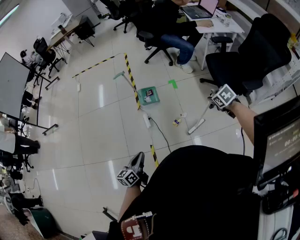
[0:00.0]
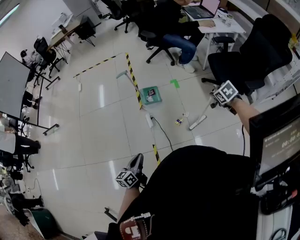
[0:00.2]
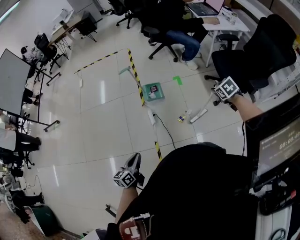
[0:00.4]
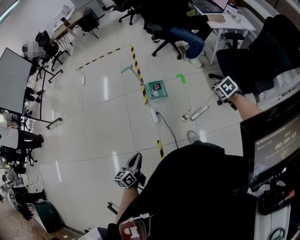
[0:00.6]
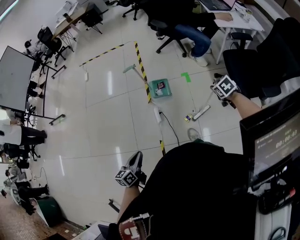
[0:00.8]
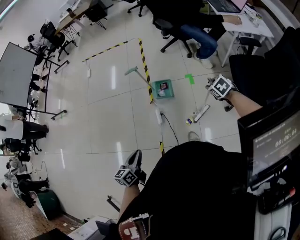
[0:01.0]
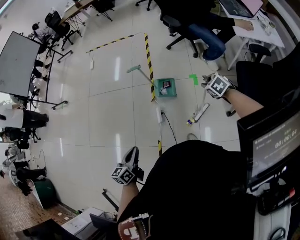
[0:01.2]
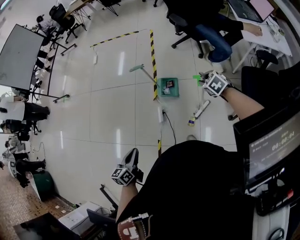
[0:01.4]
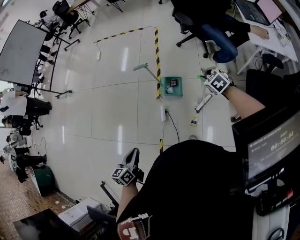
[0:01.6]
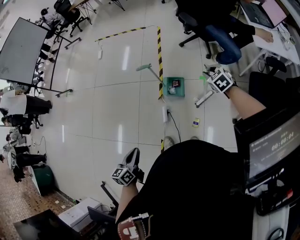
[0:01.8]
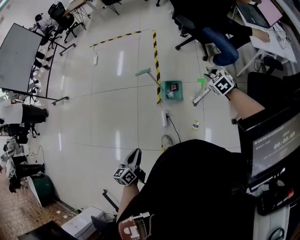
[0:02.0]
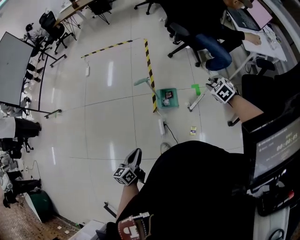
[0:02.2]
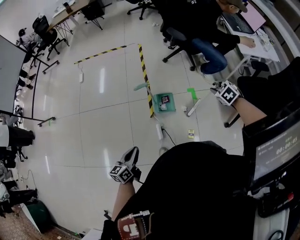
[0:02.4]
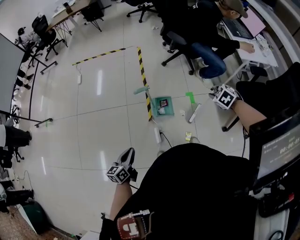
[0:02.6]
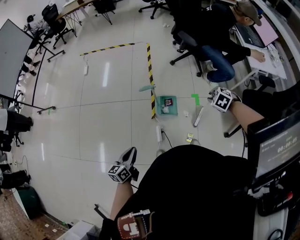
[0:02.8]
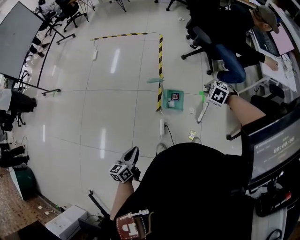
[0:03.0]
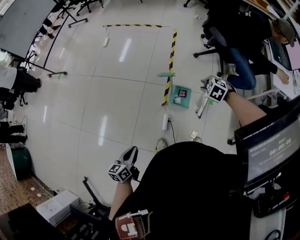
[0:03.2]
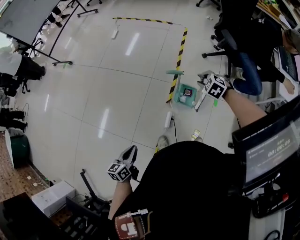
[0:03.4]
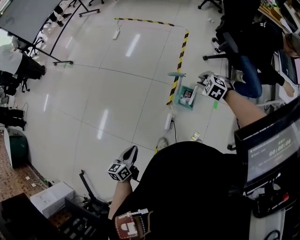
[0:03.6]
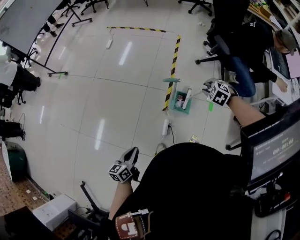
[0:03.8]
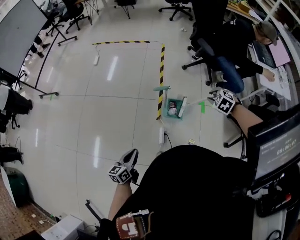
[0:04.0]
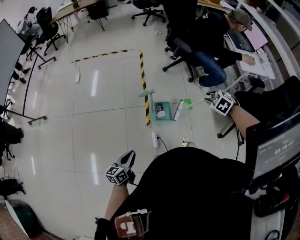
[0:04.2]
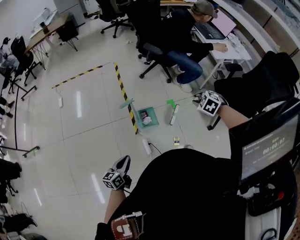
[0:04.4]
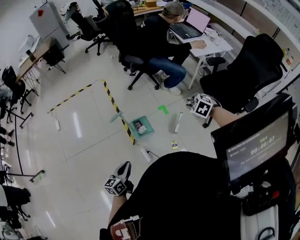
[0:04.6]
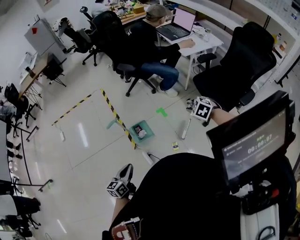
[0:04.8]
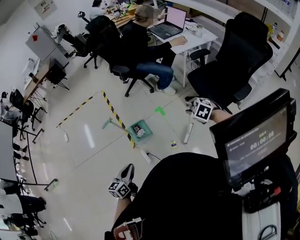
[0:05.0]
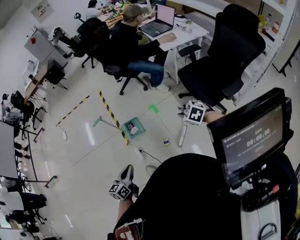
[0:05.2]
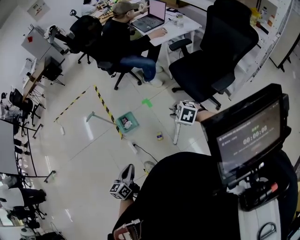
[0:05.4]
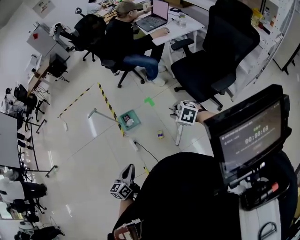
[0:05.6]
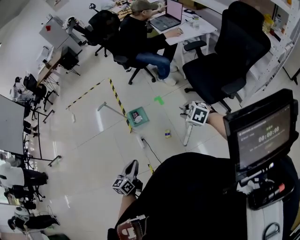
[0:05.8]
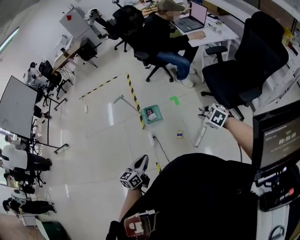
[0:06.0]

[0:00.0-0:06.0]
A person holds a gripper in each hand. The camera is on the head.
0:00.0 to 0:01.6: The left gripper shifts by some 20 cm, and rotates approximately 20 degrees. Meanwhile the right gripper moves approximately 40 cm, and changes its angle by some 30 degrees.
0:01.6 to 0:03.0: The left gripper shifts by approximately 20 cm. The right gripper ends up roughly 15 cm from where it was, and swivels roughly 30 degrees.
0:03.0 to 0:04.4: The left gripper shifts by roughly 5 cm, and changes its angle by about 20 degrees. Meanwhile the right gripper changes place by approximately 15 cm, and rotates roughly 20 degrees.
0:04.4 to 0:06.0: Both grippers are carried to the right and backward, roughly 40 cm.

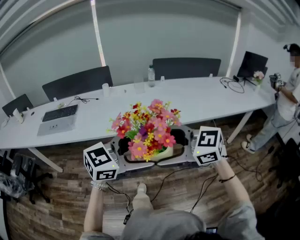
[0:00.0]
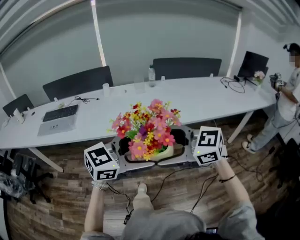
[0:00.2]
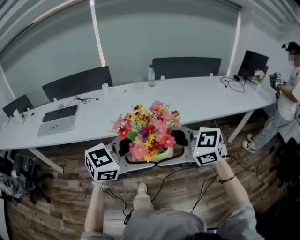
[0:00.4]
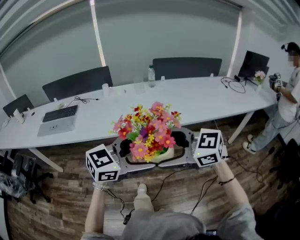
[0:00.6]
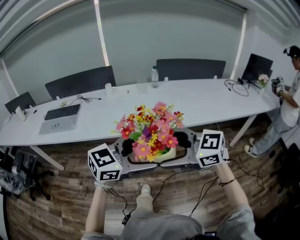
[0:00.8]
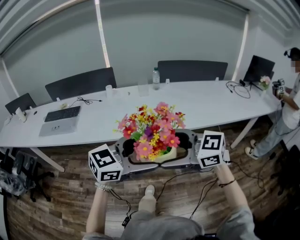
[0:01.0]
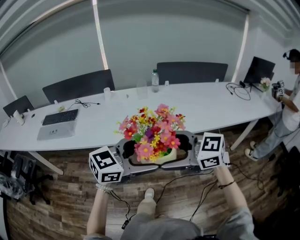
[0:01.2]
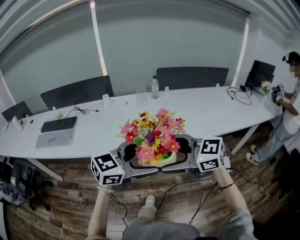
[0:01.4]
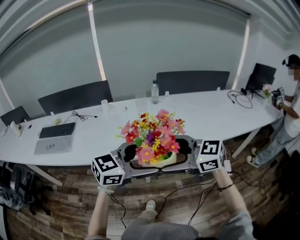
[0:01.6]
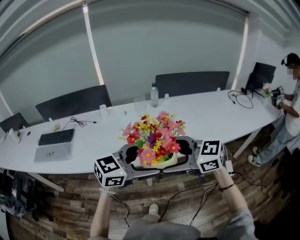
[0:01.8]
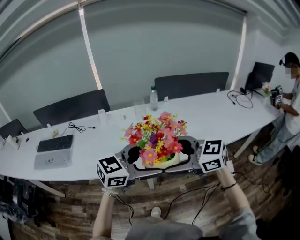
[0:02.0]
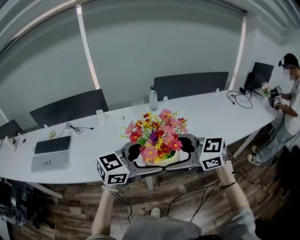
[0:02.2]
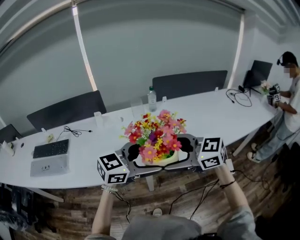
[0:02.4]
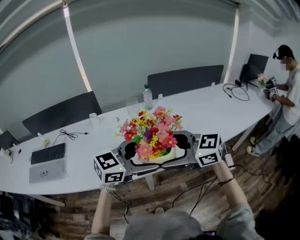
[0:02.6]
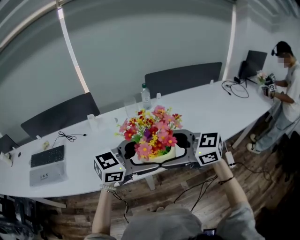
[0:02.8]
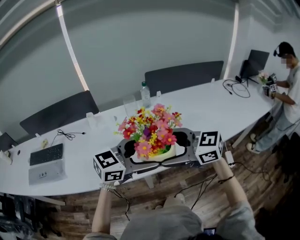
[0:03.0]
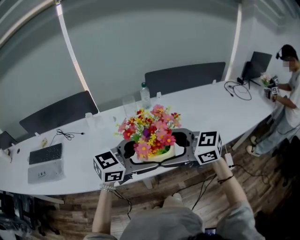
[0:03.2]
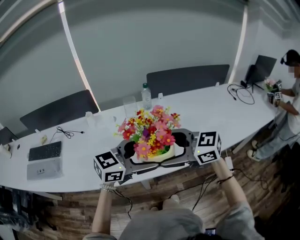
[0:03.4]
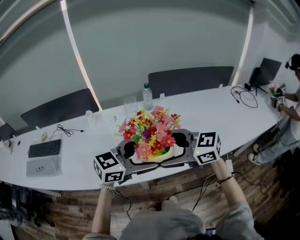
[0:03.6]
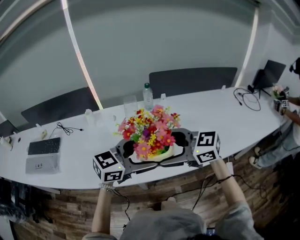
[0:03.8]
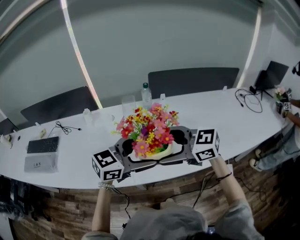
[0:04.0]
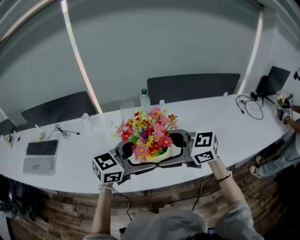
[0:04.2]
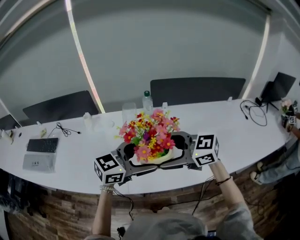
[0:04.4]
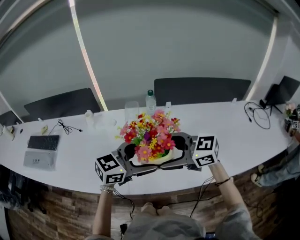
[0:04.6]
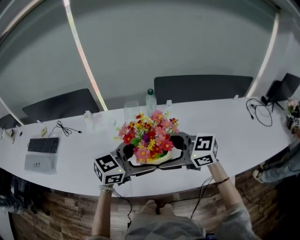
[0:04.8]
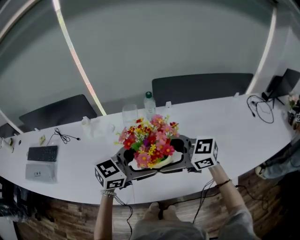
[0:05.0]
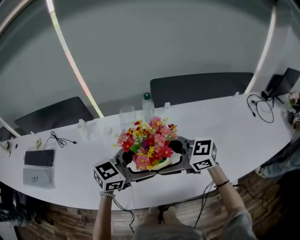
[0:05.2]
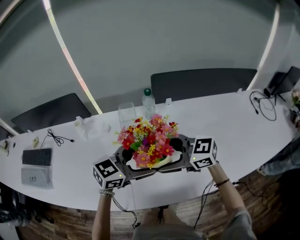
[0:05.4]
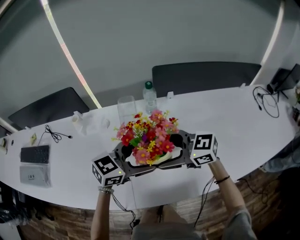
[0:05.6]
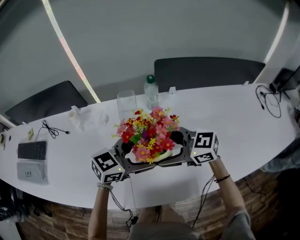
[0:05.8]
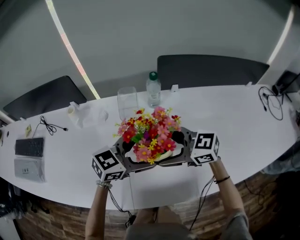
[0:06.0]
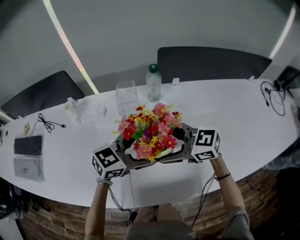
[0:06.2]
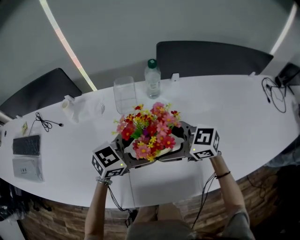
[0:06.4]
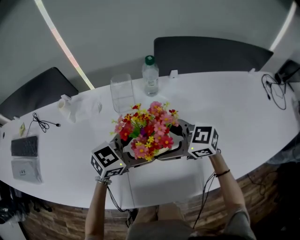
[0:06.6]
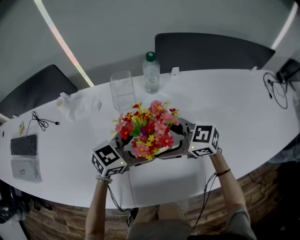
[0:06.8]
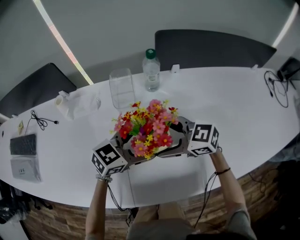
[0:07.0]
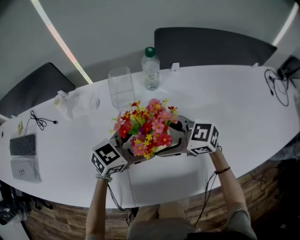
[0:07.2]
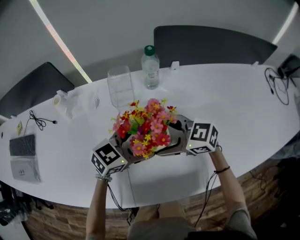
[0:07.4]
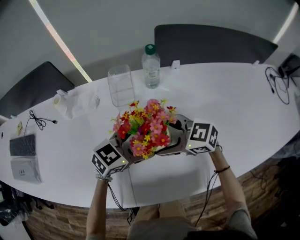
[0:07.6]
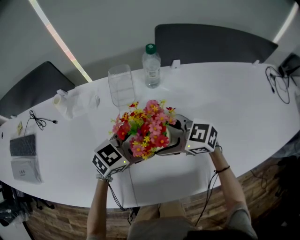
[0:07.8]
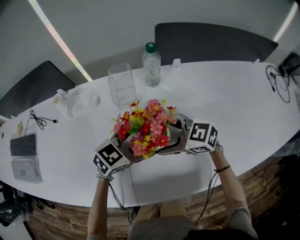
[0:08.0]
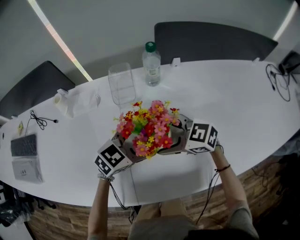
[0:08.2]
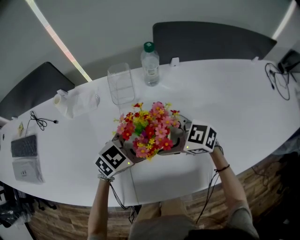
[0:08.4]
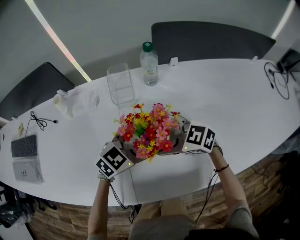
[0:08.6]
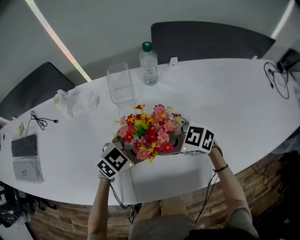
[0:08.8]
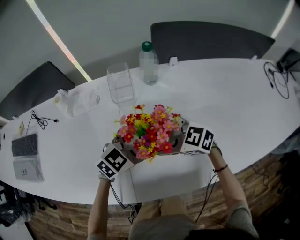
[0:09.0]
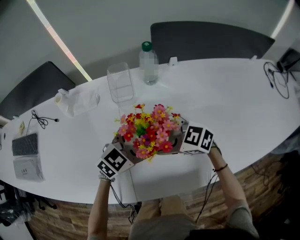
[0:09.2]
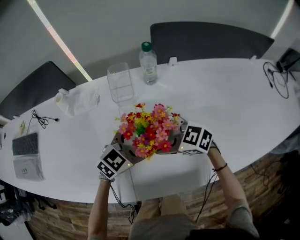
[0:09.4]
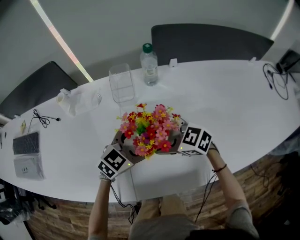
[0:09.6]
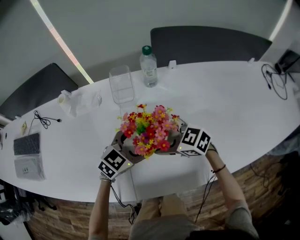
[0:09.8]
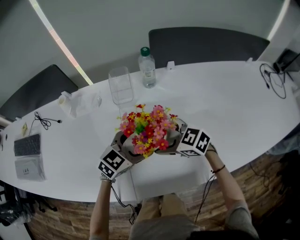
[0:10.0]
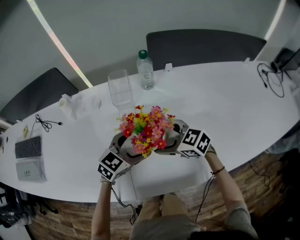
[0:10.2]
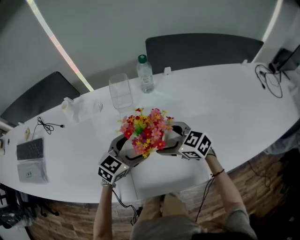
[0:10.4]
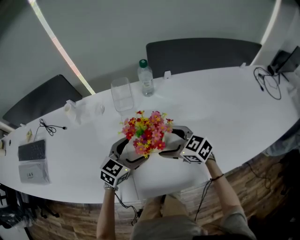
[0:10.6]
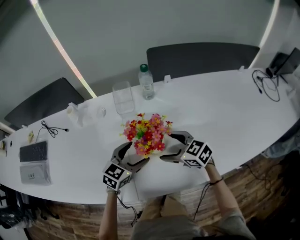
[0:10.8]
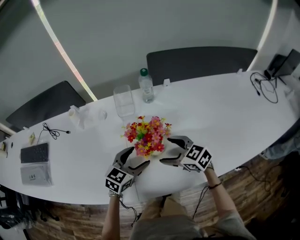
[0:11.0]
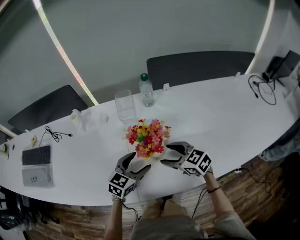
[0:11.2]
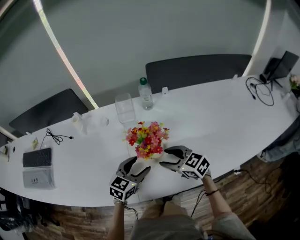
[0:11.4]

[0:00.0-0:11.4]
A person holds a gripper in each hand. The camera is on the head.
0:00.0 to 0:01.4: The left gripper moves roughly 10 cm, while the right gripper moves about 10 cm.
0:01.4 to 0:02.8: The right gripper moves roughly 20 cm, while the left gripper shifts by approximately 20 cm.
0:02.8 to 0:04.2: The right gripper ends up some 15 cm from where it was; the left gripper shifts by roughly 15 cm.
0:04.2 to 0:05.6: The left gripper shifts by some 15 cm; the right gripper shifts by some 15 cm.
0:05.6 to 0:07.2: Both grippers travel together downward, about 10 cm.
0:07.2 to 0:10.0: The grippers make only small movements.
0:10.0 to 0:11.4: The right gripper moves about 5 cm, and closes its fingers; the left gripper ends up roughly 5 cm from where it was.

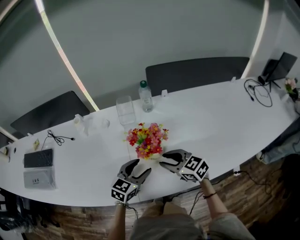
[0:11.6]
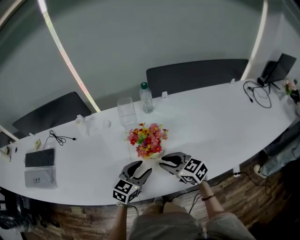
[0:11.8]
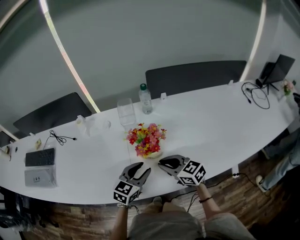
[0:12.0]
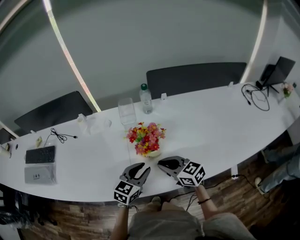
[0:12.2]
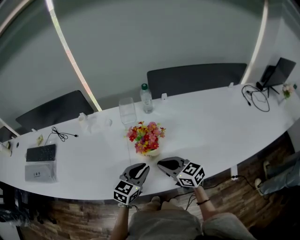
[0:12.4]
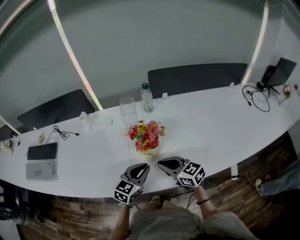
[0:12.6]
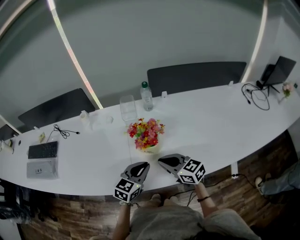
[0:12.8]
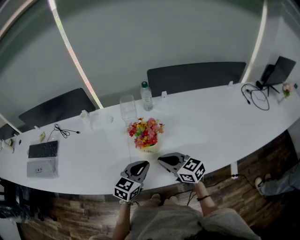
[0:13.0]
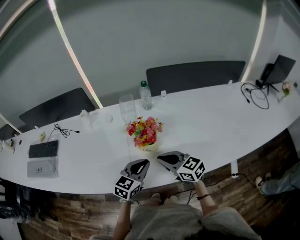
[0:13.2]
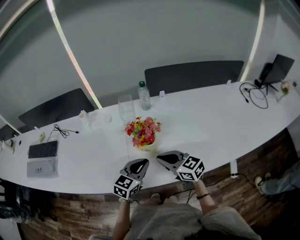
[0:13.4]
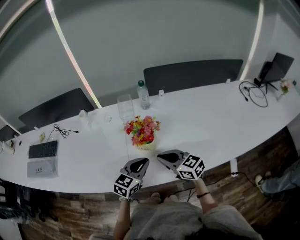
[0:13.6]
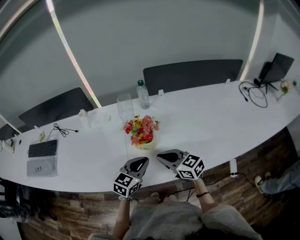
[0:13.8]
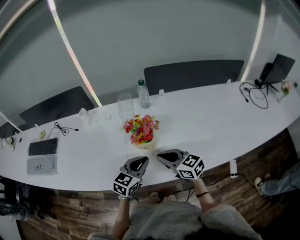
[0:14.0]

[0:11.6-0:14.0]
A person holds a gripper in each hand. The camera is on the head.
0:11.6 to 0:12.8: The left gripper moves backward, roughly 5 cm, and closes. The right gripper ends up some 5 cm from where it was.
0:12.8 to 0:14.0: There are only small adjustments of the grippers.

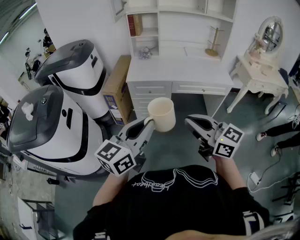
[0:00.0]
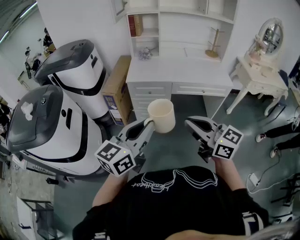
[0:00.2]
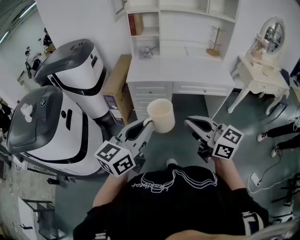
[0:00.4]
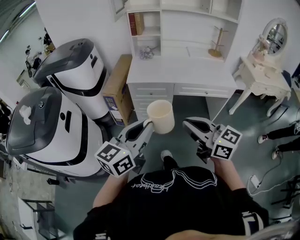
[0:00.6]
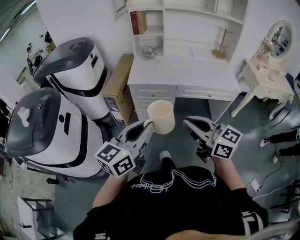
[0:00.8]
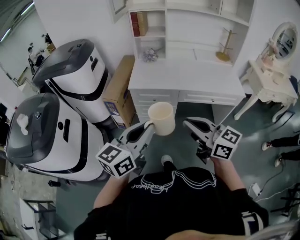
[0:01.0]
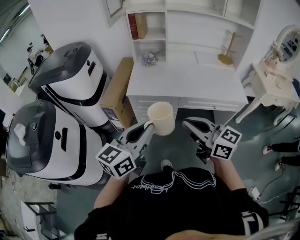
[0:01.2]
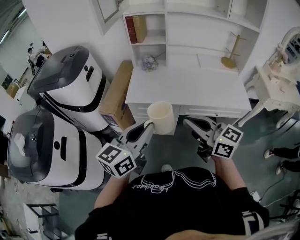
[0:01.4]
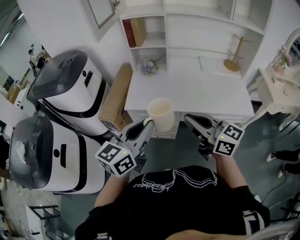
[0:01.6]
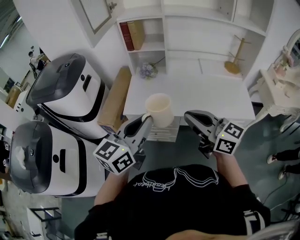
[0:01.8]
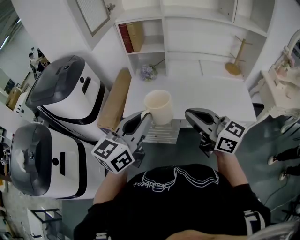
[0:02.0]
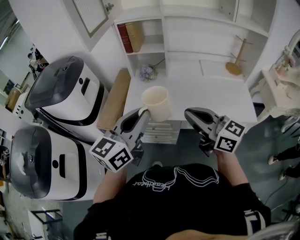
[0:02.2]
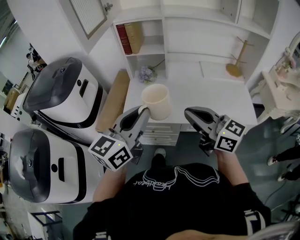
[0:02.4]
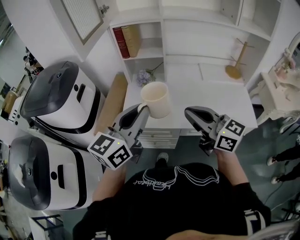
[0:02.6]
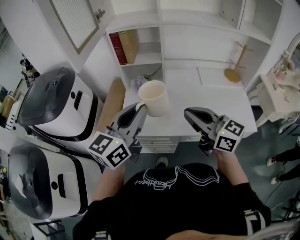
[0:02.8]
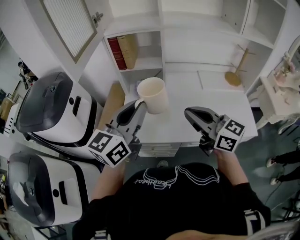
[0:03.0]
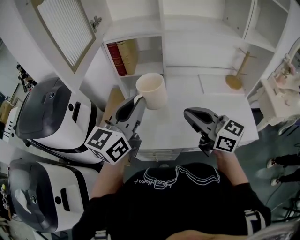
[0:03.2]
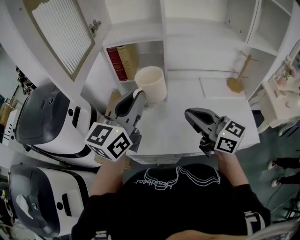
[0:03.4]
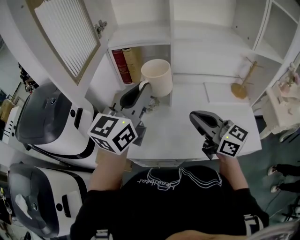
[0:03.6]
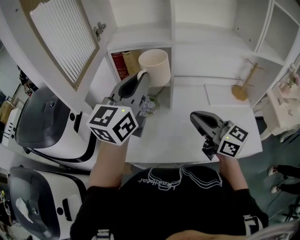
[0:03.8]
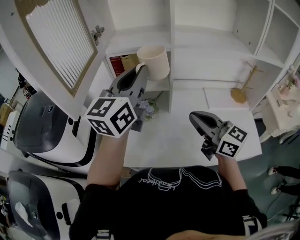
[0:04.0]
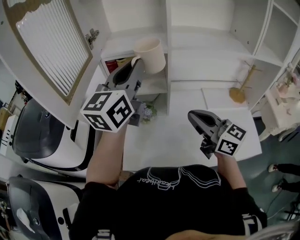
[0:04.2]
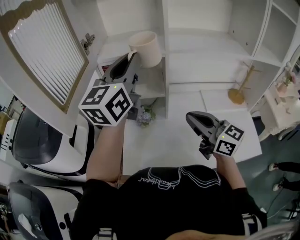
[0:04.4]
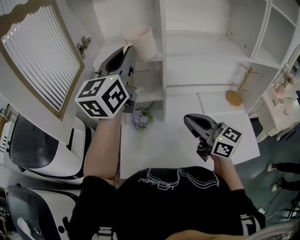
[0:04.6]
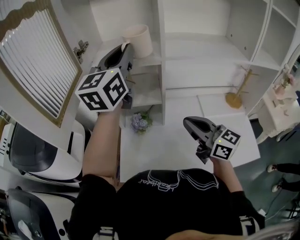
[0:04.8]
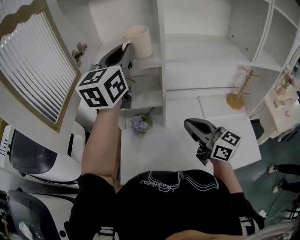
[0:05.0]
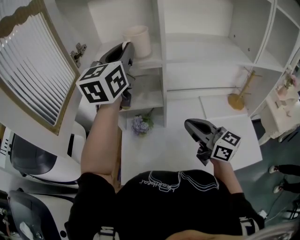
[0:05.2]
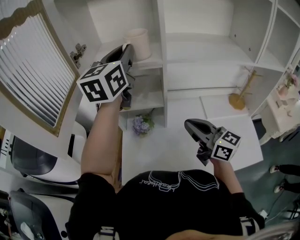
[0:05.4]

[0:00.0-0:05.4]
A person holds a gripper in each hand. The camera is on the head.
0:00.0 to 0:01.4: Both grippers move forward, roughly 25 cm.
0:01.4 to 0:02.8: The grippers both shift forward by roughly 25 cm.
0:02.8 to 0:04.0: The right gripper is displaced forward by about 15 cm. Meanwhile the left gripper heads forward and upward, covering roughly 25 cm.
0:04.0 to 0:05.4: The left gripper goes roughly 15 cm forward. Meanwhile the right gripper shifts roughly 5 cm forward.
